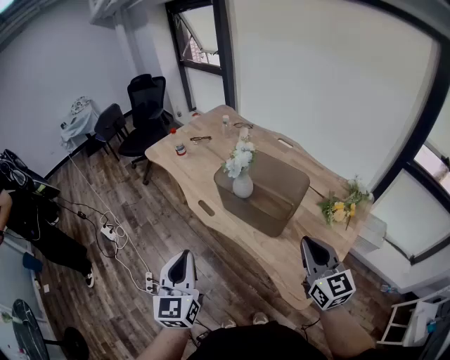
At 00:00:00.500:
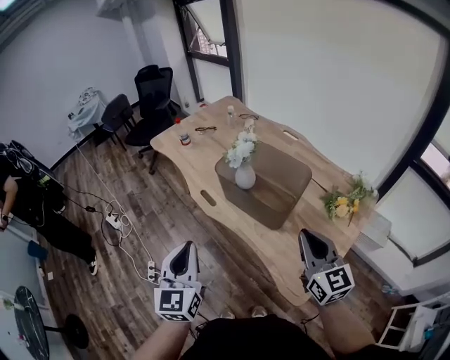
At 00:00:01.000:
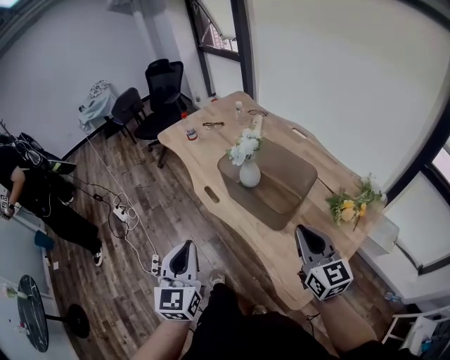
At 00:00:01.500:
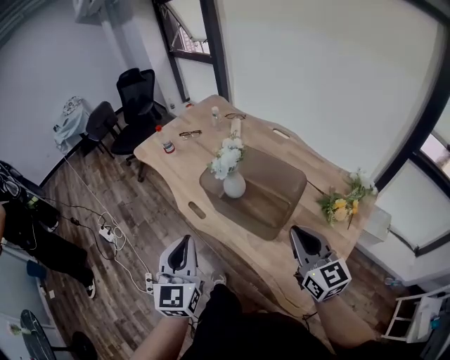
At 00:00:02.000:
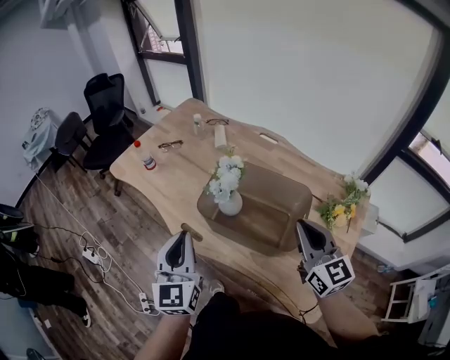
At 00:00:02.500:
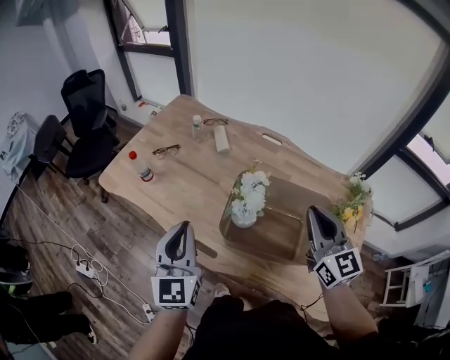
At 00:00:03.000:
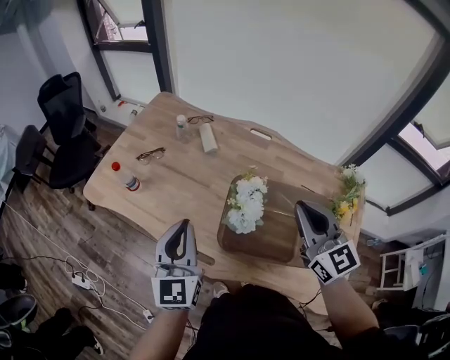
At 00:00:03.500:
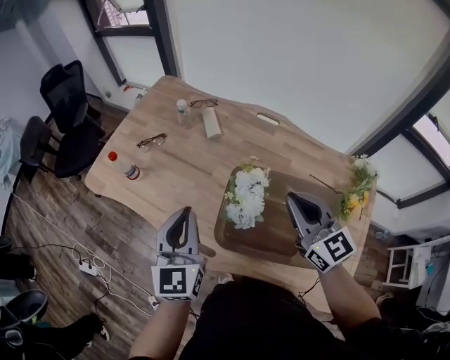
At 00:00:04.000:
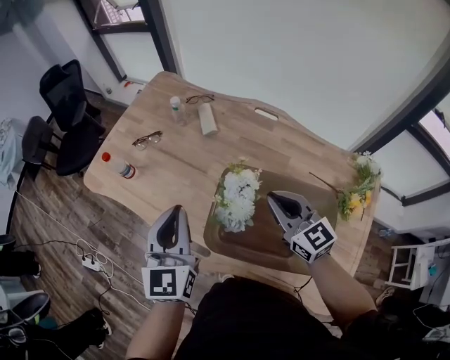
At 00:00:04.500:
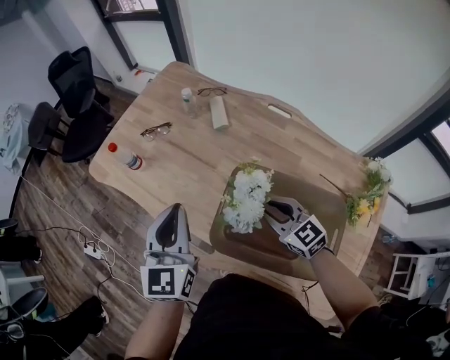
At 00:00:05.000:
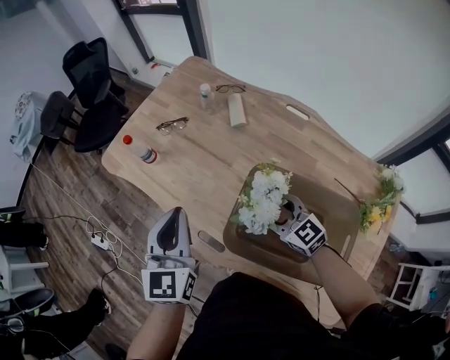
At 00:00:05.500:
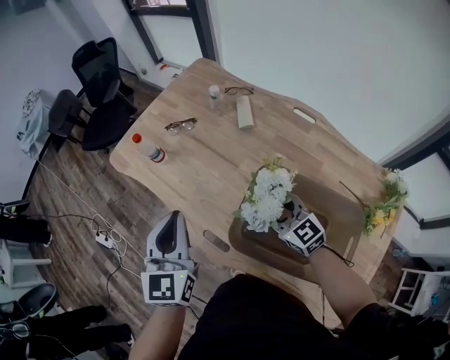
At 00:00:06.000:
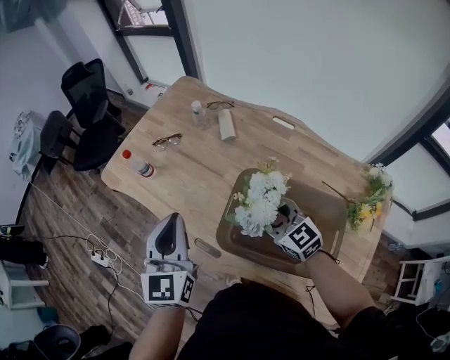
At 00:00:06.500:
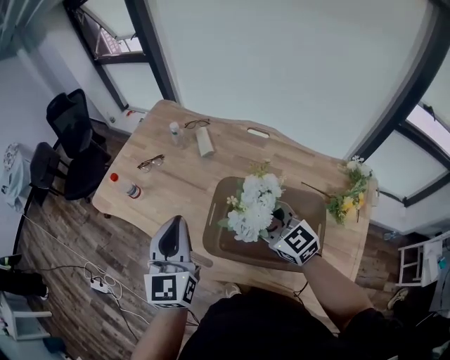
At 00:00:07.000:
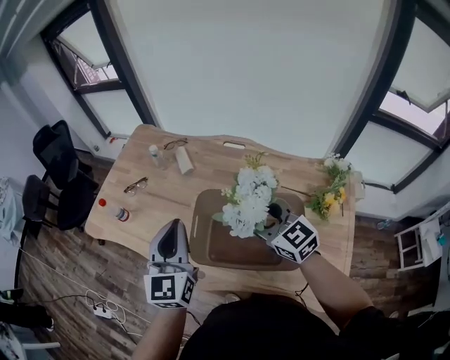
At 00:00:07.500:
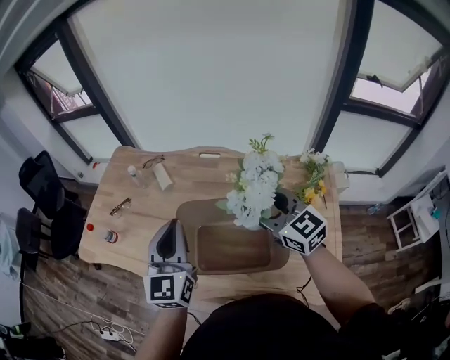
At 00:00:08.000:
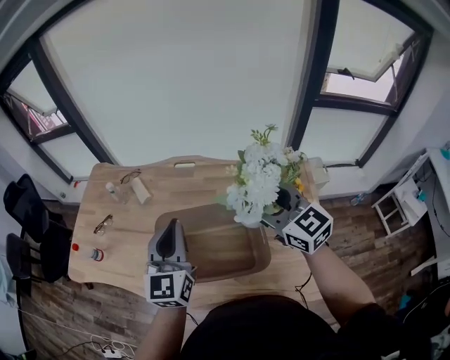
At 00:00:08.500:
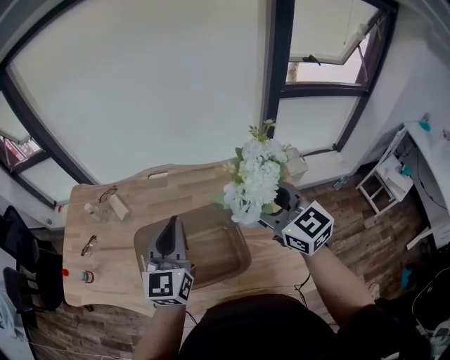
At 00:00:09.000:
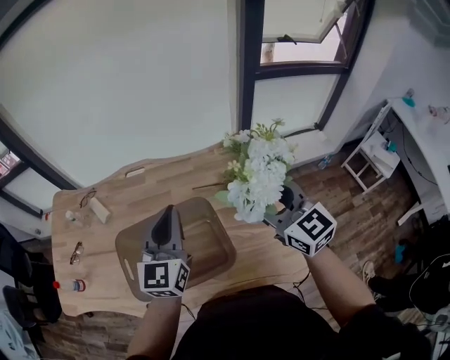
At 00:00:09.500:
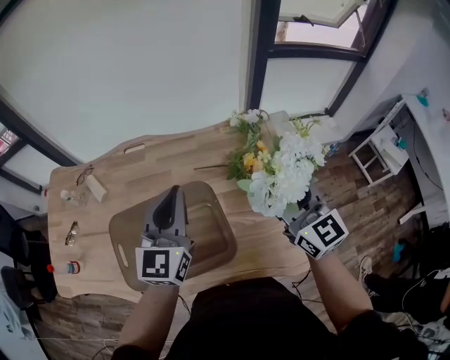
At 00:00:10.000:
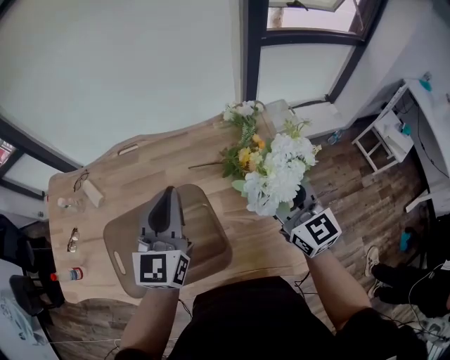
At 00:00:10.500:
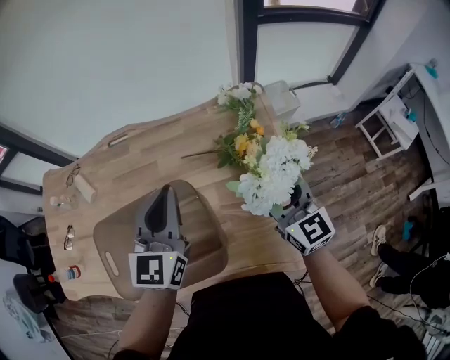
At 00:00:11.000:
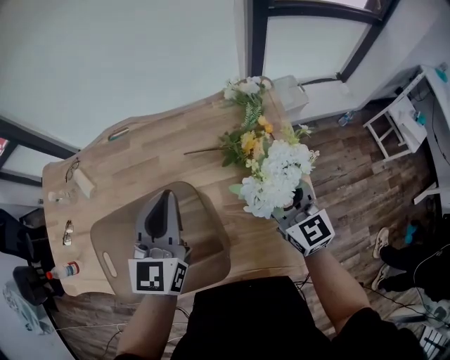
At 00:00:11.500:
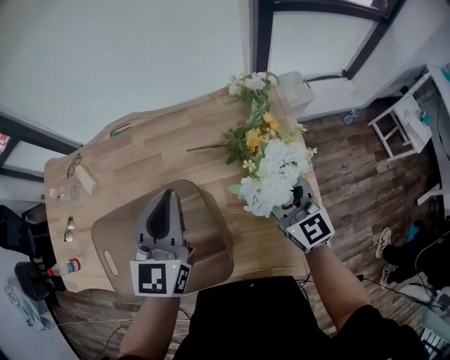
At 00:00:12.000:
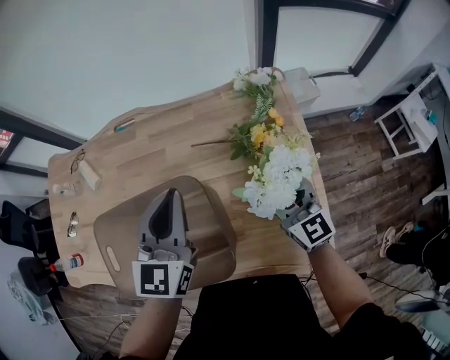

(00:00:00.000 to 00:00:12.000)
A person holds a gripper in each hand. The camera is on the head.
00:00:00.000 - 00:00:02.000: The grippers both shift forward by approximately 20 cm.
00:00:02.000 - 00:00:04.000: The left gripper goes approximately 20 cm forward. Meanwhile the right gripper moves forward, downward and to the left, some 25 cm.
00:00:04.000 - 00:00:06.000: The right gripper heads to the left, covering approximately 5 cm, and opens. The left gripper changes place by roughly 5 cm.
00:00:06.000 - 00:00:08.000: The left gripper shifts by roughly 25 cm, and changes its angle by about 30 degrees. Meanwhile the right gripper changes place by some 30 cm, and rotates roughly 30 degrees.
00:00:08.000 - 00:00:10.000: The right gripper travels to the right and downward by some 20 cm, and turns by approximately 30 degrees; the left gripper is displaced to the right by some 15 cm.
00:00:10.000 - 00:00:12.000: The right gripper goes roughly 15 cm downward. The left gripper is displaced downward by roughly 5 cm.

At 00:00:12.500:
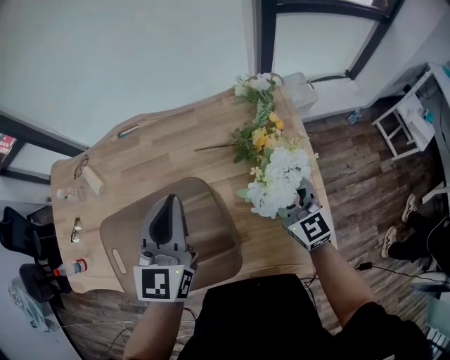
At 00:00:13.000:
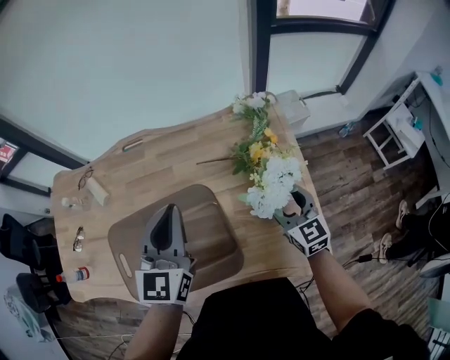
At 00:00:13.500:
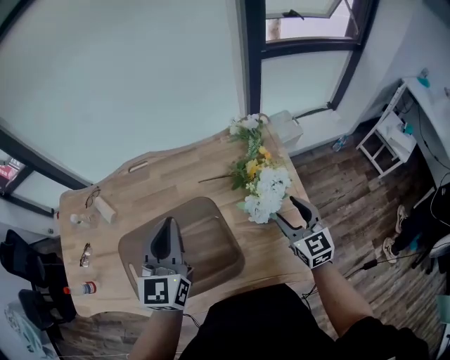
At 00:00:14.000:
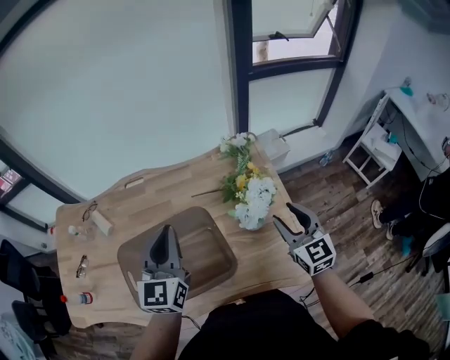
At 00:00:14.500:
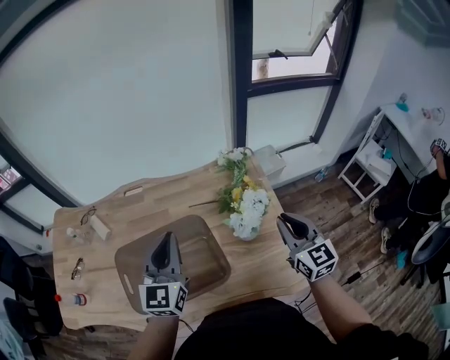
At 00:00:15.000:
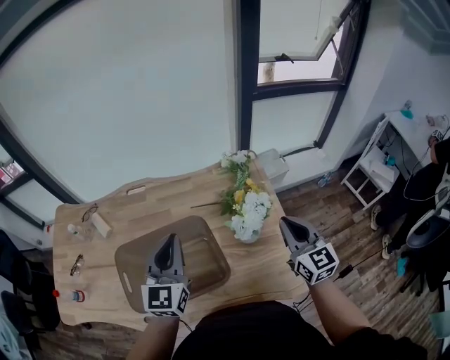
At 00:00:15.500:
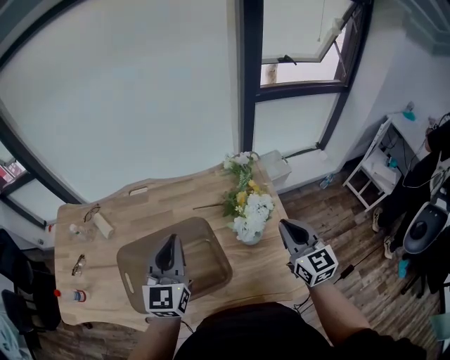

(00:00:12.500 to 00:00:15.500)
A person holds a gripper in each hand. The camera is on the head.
00:00:12.500 - 00:00:14.000: The right gripper is displaced upward, backward and to the right by approximately 15 cm, while the left gripper heads upward, covering some 5 cm.
00:00:14.000 - 00:00:15.500: The right gripper closes up.

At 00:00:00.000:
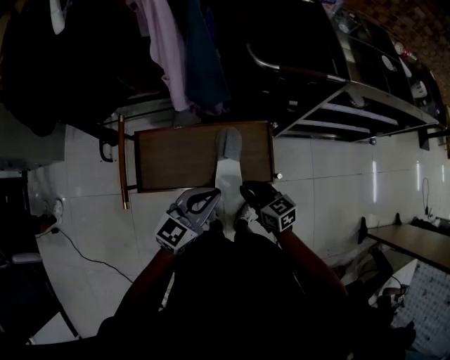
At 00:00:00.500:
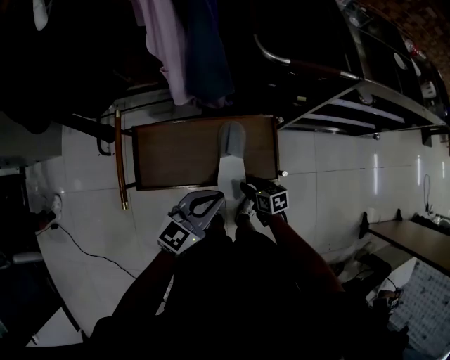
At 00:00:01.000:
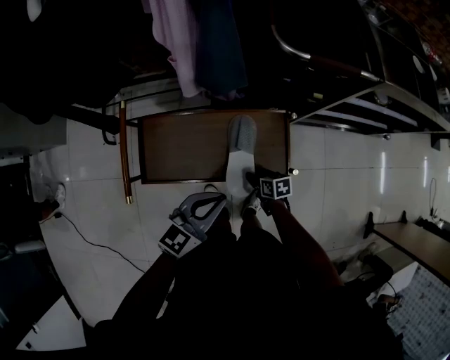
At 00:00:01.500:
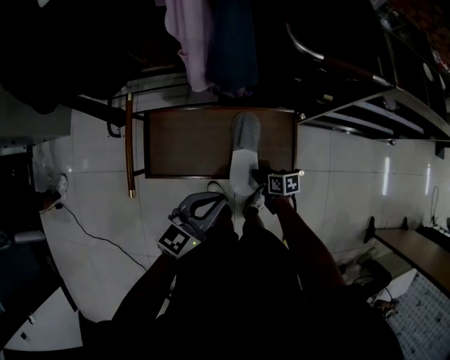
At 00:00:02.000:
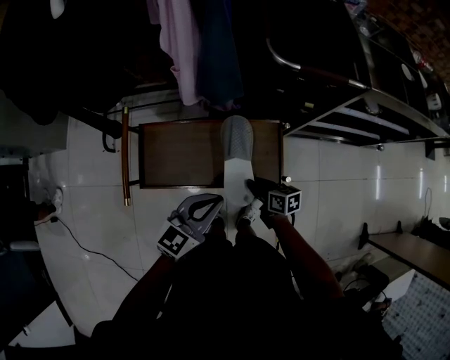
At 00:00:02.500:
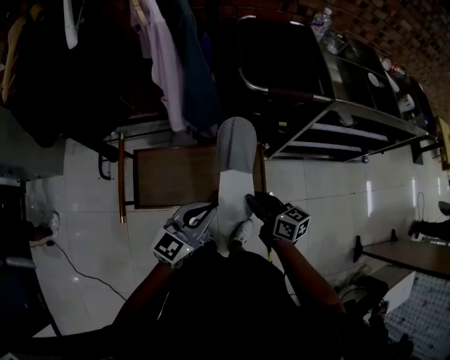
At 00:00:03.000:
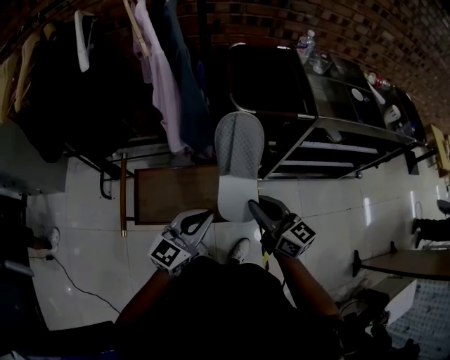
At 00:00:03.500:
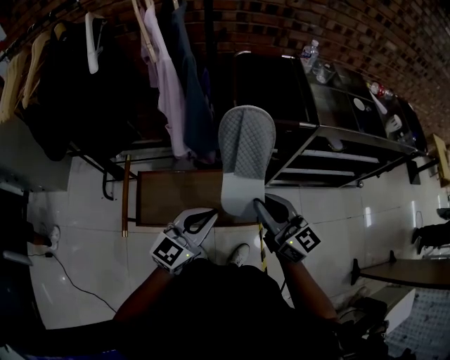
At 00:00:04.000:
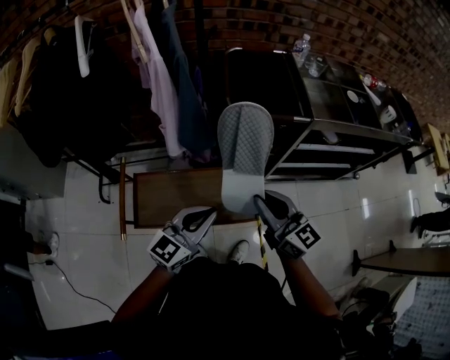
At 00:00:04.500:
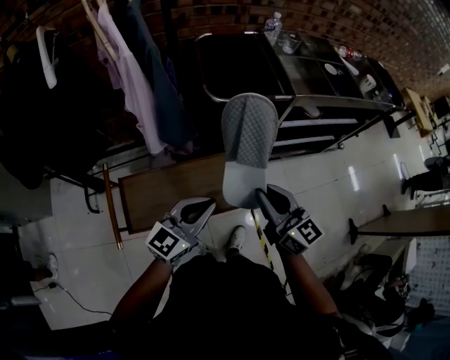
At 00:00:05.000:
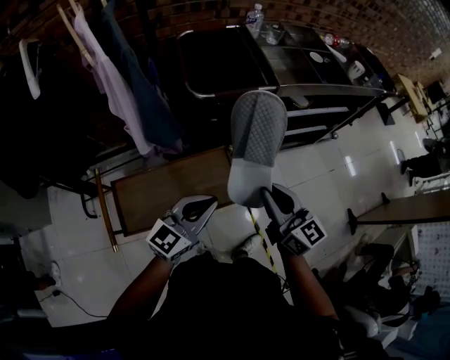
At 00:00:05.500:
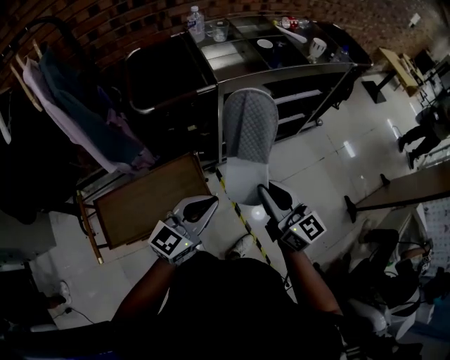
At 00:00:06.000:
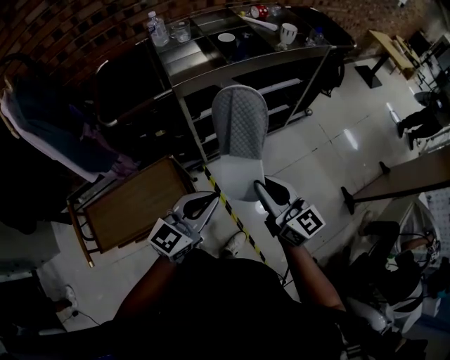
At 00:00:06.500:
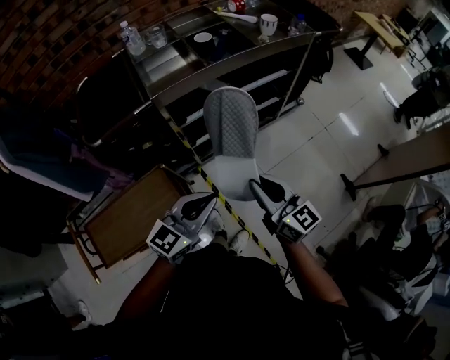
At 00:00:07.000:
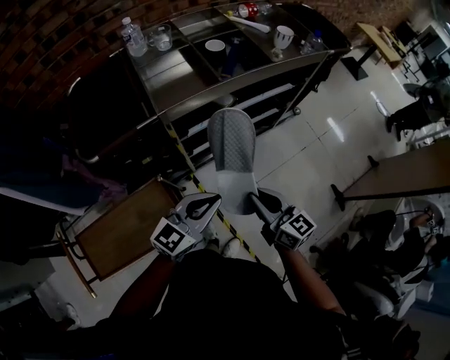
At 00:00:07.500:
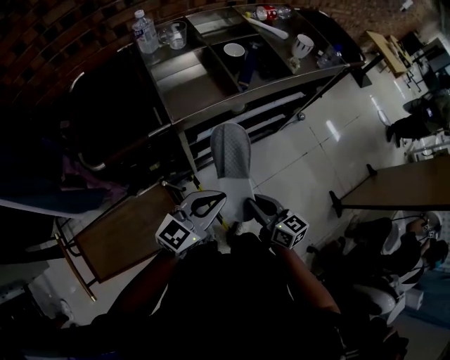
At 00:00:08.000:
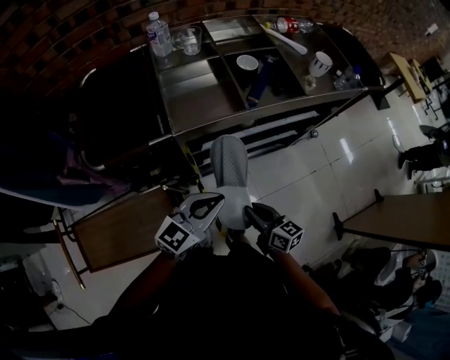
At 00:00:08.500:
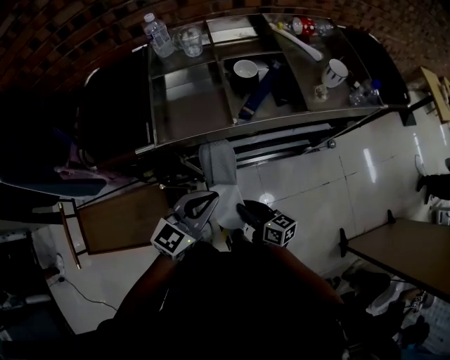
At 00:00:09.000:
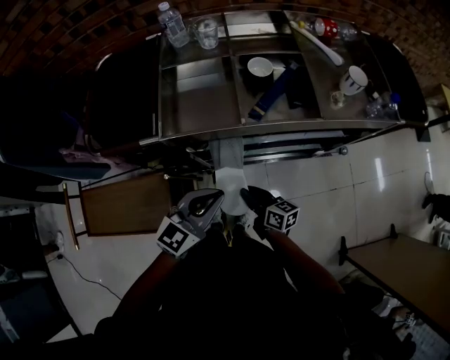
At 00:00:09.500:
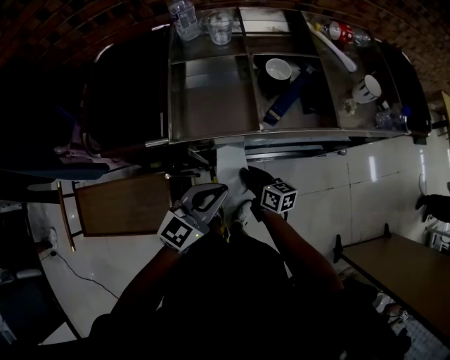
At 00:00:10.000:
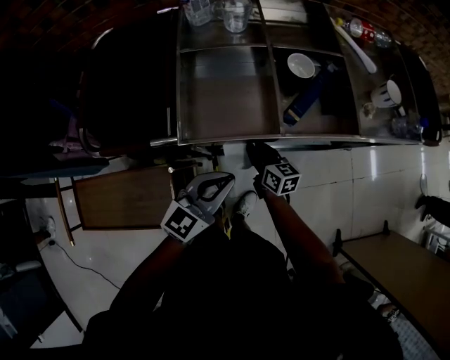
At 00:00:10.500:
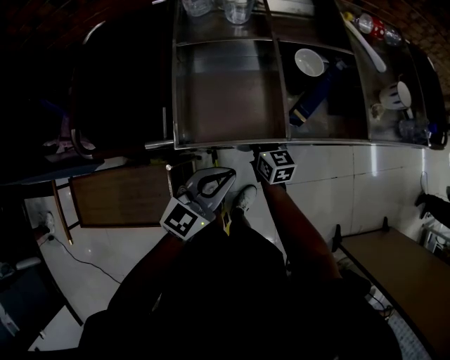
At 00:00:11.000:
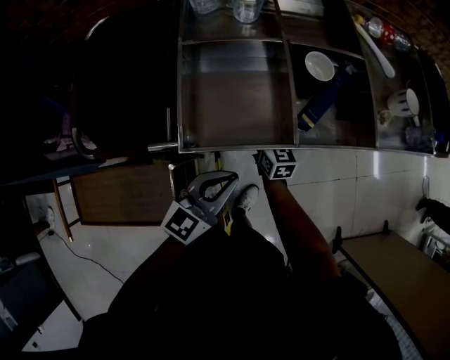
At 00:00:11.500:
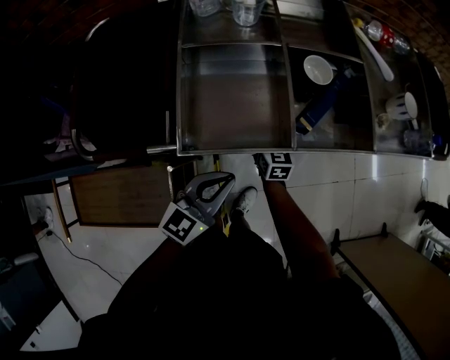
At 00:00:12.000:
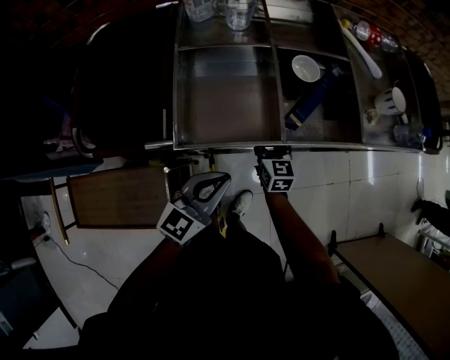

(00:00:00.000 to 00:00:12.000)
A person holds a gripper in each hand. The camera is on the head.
00:00:00.000 - 00:00:02.000: The right gripper shifts about 10 cm downward, turns by about 20 degrees, and opens, then closes again.
00:00:02.000 - 00:00:04.000: The left gripper travels upward by about 15 cm; the right gripper heads upward, covering approximately 35 cm, and points its fingers some 30 degrees further upward.
00:00:04.000 - 00:00:06.000: Both grippers travel together to the right, some 35 cm. The left gripper swivels roughly 20 degrees. The right gripper turns by some 20 degrees.
00:00:06.000 - 00:00:08.000: The right gripper moves downward and forward, roughly 25 cm, and swivels approximately 30 degrees; the left gripper goes some 20 cm forward.
00:00:08.000 - 00:00:10.000: The left gripper travels forward by some 10 cm. The right gripper is displaced forward by about 25 cm.
00:00:10.000 - 00:00:12.000: The right gripper moves forward, about 5 cm, rotates approximately 30 degrees, and opens its fingers.
